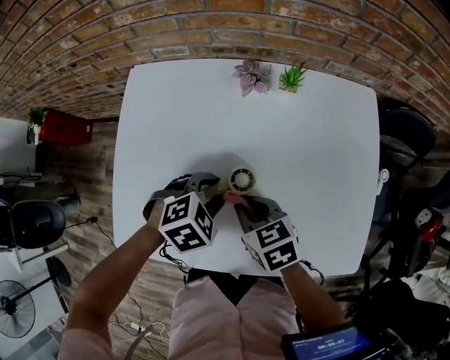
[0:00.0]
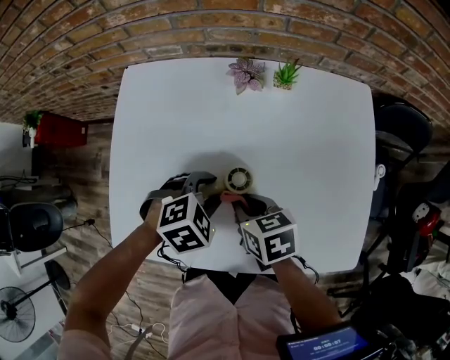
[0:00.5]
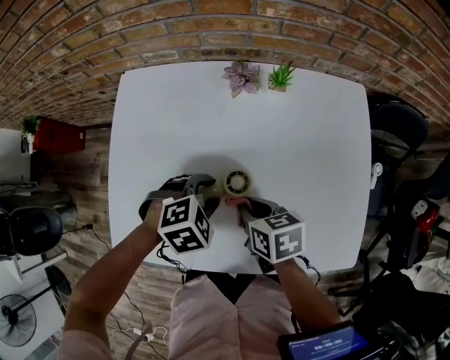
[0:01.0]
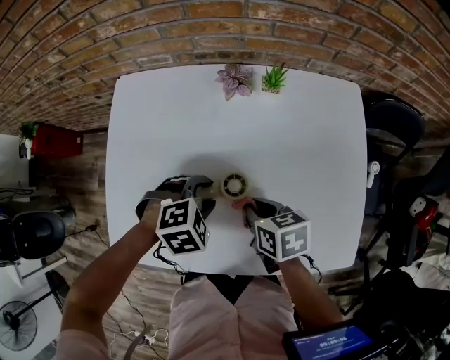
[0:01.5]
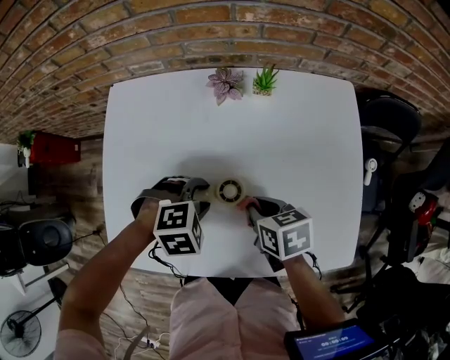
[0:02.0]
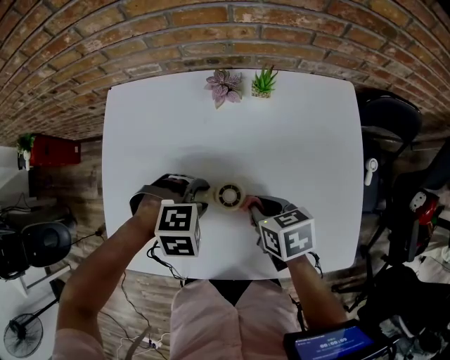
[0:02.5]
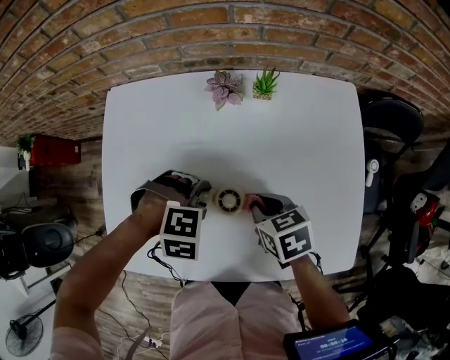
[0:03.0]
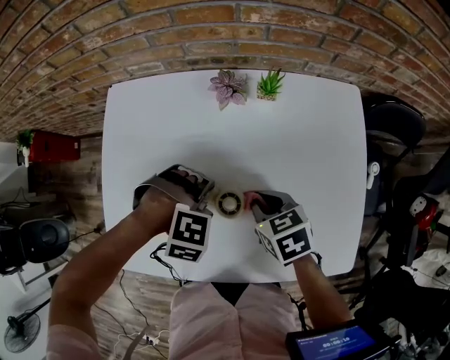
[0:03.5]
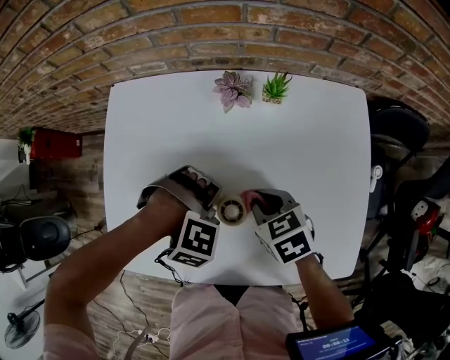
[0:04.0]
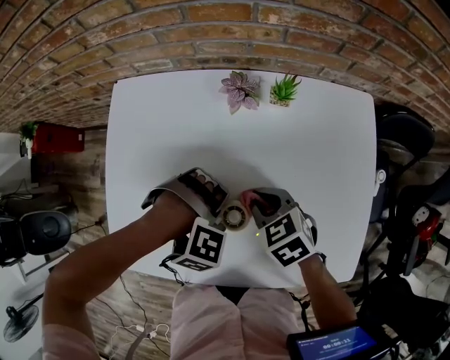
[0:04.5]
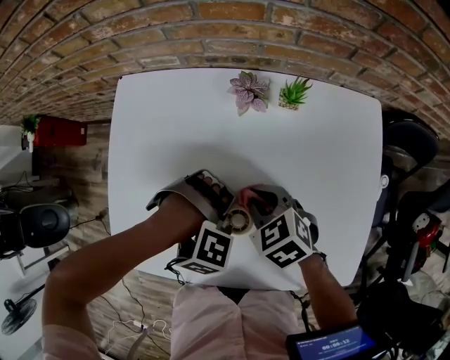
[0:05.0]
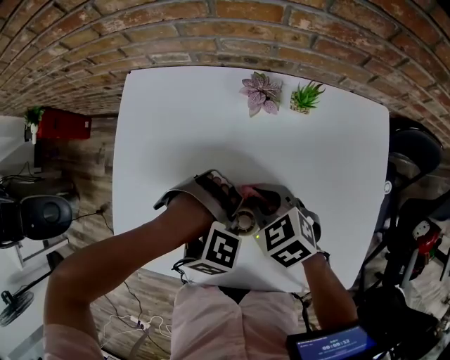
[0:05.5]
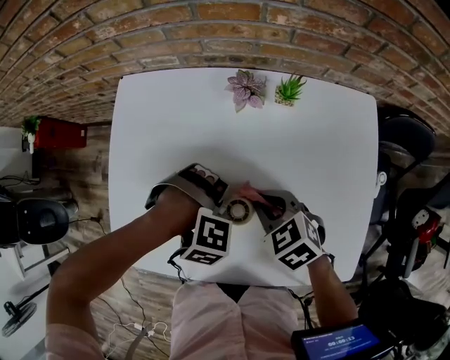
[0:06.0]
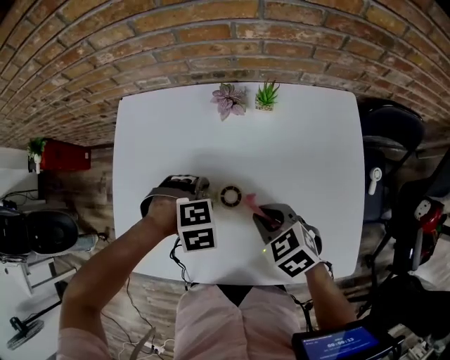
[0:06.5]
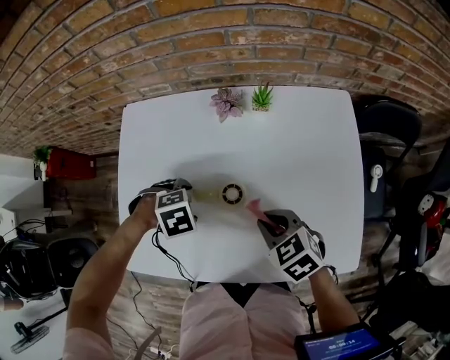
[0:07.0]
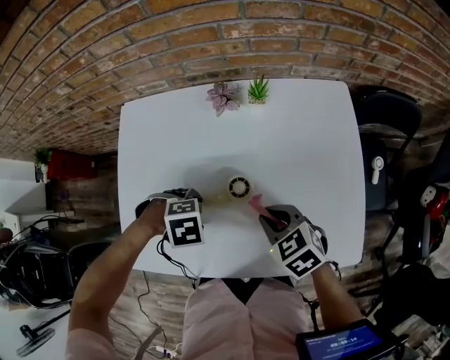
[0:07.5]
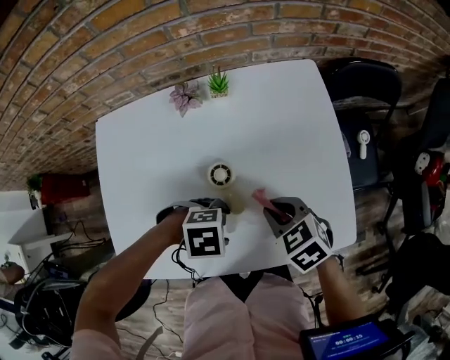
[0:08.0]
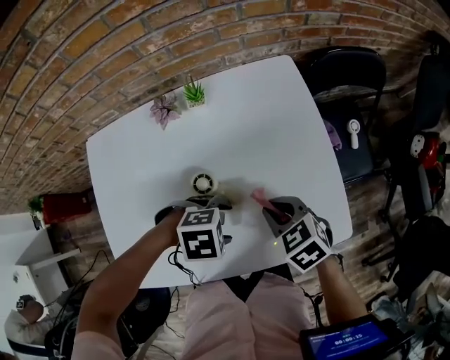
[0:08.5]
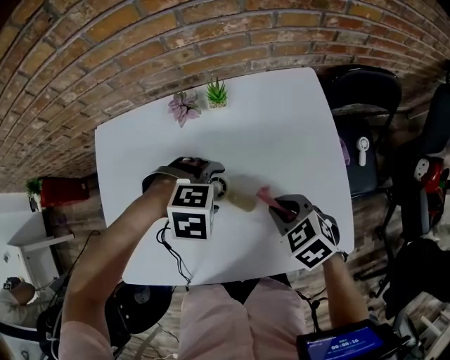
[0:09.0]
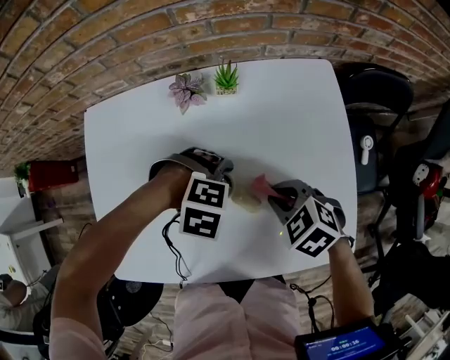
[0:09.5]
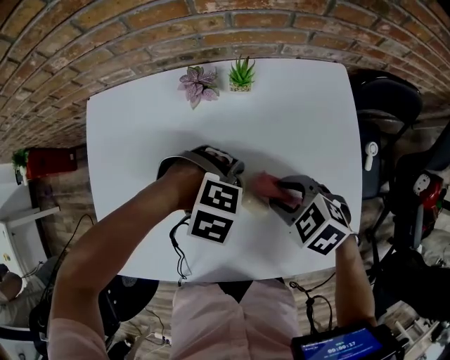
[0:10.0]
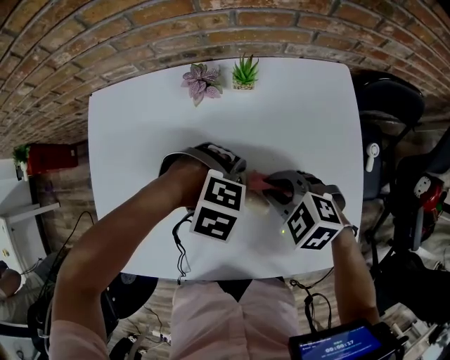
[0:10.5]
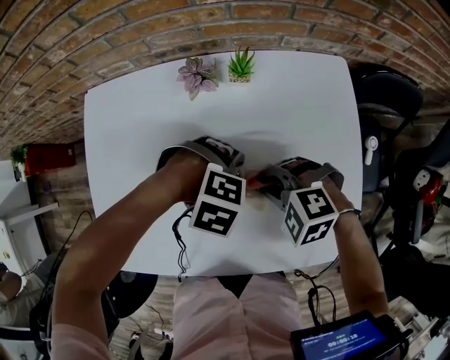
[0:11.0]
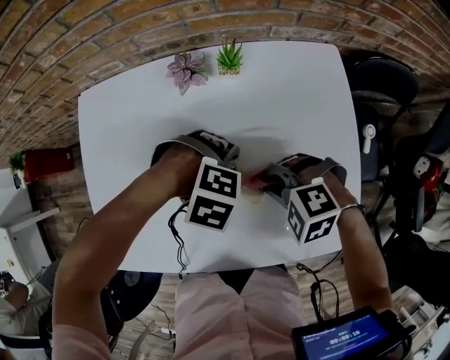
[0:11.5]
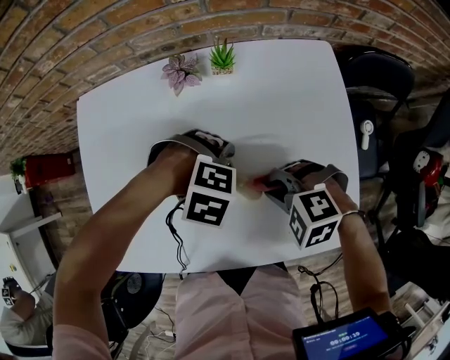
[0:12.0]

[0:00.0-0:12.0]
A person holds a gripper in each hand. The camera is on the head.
0:00.0 to 0:02.0: The right gripper shifts approximately 5 cm to the right; the left gripper turns by some 20 degrees.
0:02.0 to 0:04.0: The right gripper rotates approximately 20 degrees. Meanwhile the left gripper rotates roughly 40 degrees.
0:06.0 to 0:08.0: The left gripper moves some 15 cm, and turns by approximately 40 degrees, while the right gripper moves approximately 15 cm.
0:08.0 to 0:10.0: The right gripper changes place by some 5 cm, swivels about 20 degrees, and opens up; the left gripper shifts by approximately 10 cm, and turns by approximately 30 degrees.
0:10.0 to 0:12.0: The right gripper changes its angle by approximately 30 degrees, and closes up.

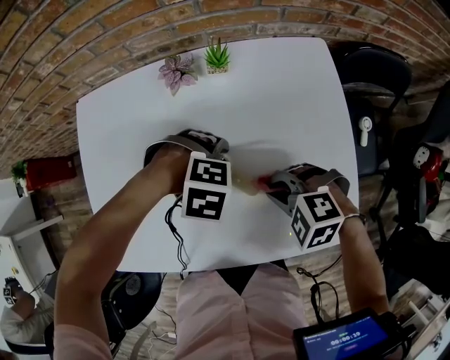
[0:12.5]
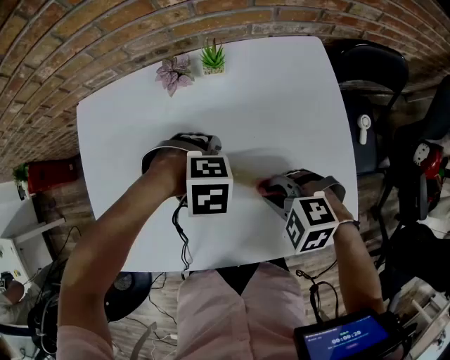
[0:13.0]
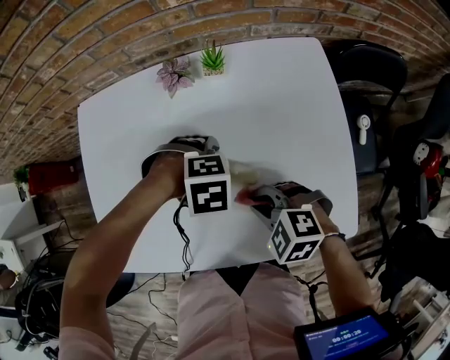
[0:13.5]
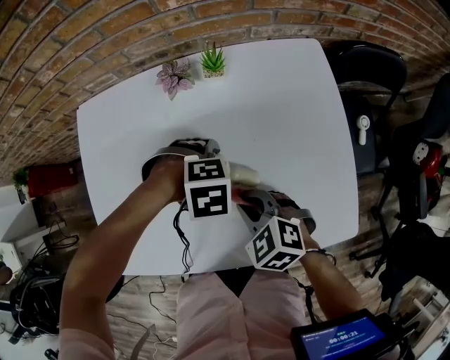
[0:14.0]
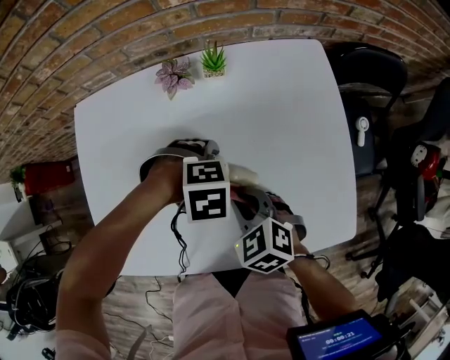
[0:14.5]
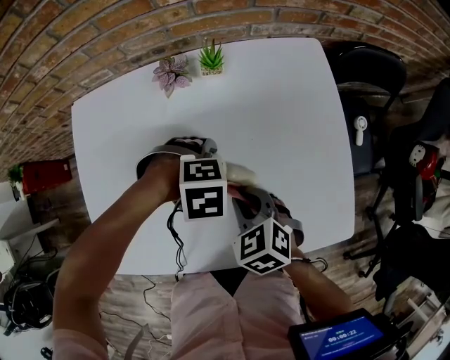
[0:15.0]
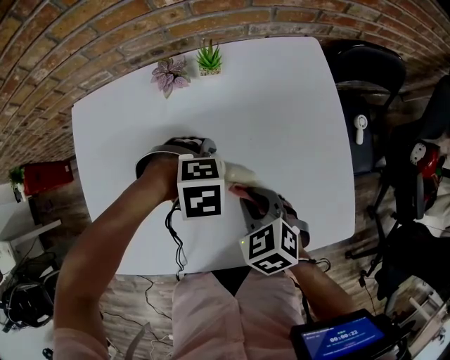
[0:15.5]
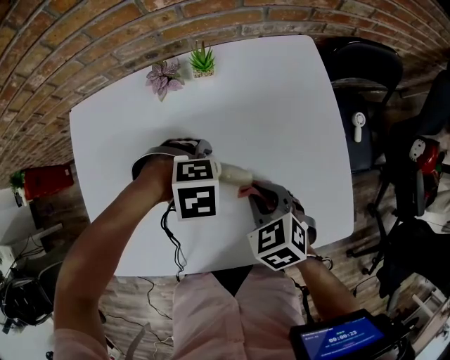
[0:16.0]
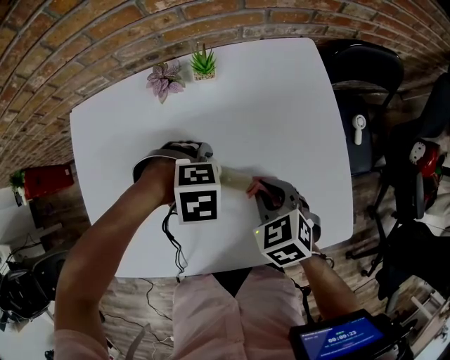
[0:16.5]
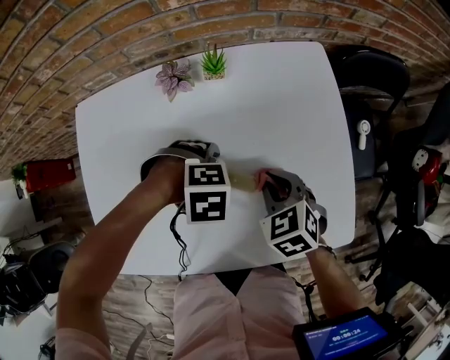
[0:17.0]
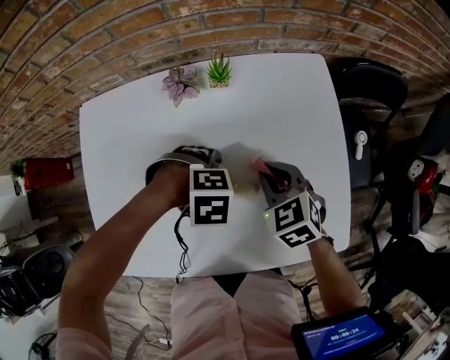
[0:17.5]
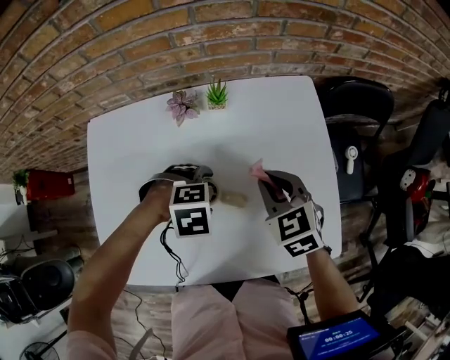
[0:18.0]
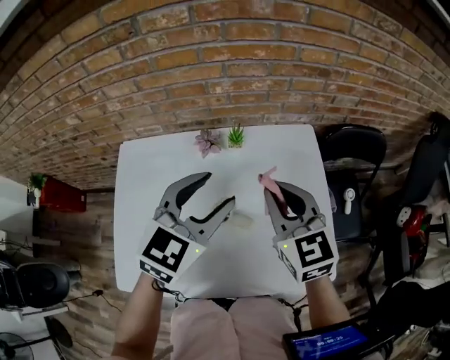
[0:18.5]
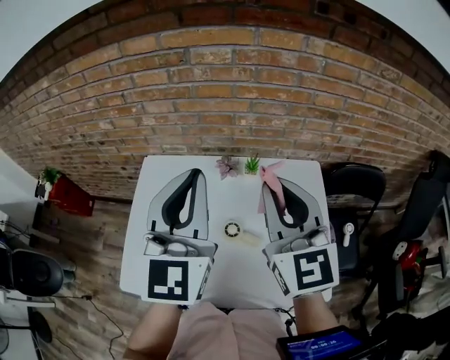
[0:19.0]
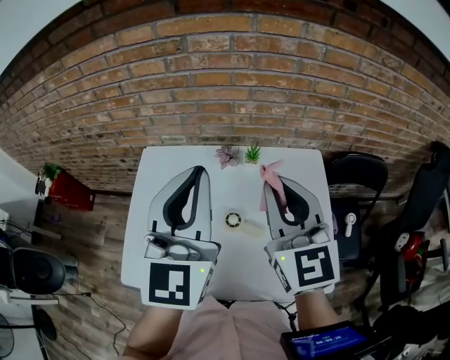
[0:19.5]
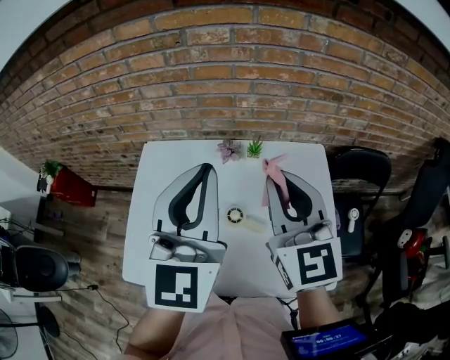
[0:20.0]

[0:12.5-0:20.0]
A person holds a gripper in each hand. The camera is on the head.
0:12.5 to 0:14.5: The right gripper ends up roughly 5 cm from where it was, and turns by about 40 degrees.
0:14.5 to 0:16.5: The right gripper moves about 10 cm.
0:16.5 to 0:18.0: The right gripper heads upward, covering some 5 cm.
0:18.0 to 0:20.0: Both grippers travel together upward, approximately 35 cm. The left gripper tips its fingers upward by about 90 degrees, and closes its fingers. The right gripper tilts its fingers roughly 40 degrees upward.

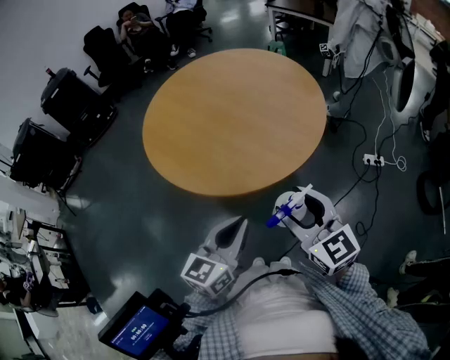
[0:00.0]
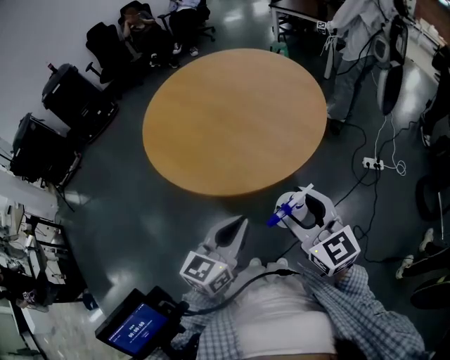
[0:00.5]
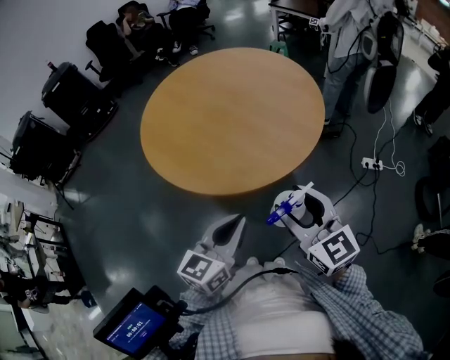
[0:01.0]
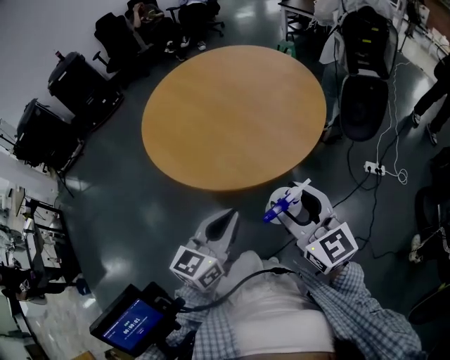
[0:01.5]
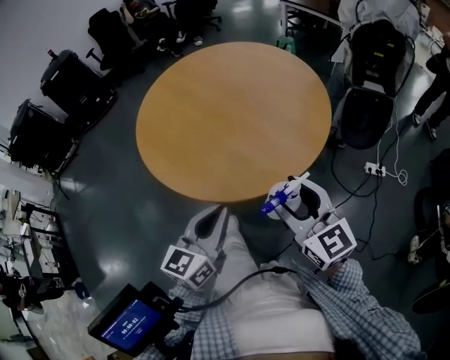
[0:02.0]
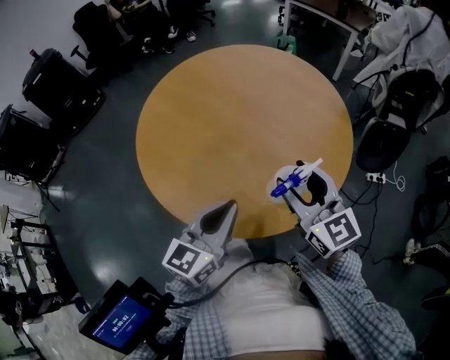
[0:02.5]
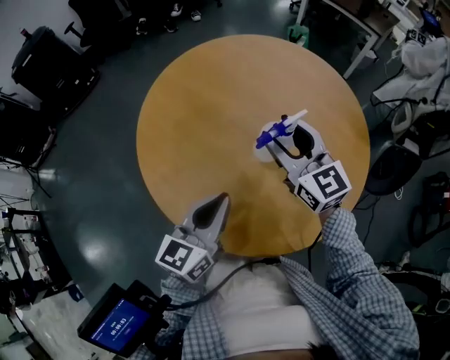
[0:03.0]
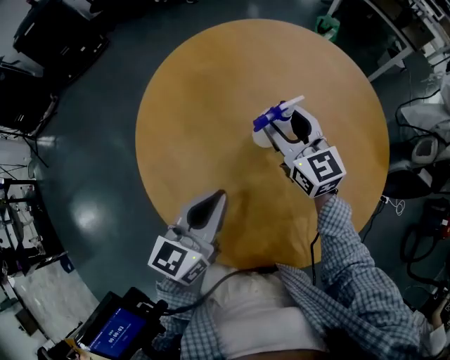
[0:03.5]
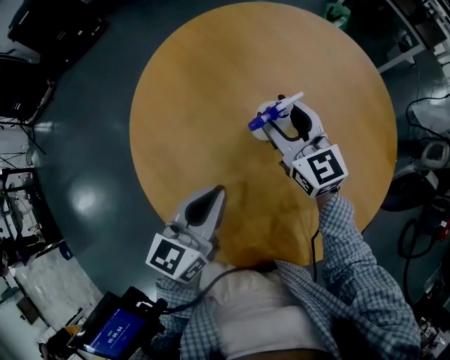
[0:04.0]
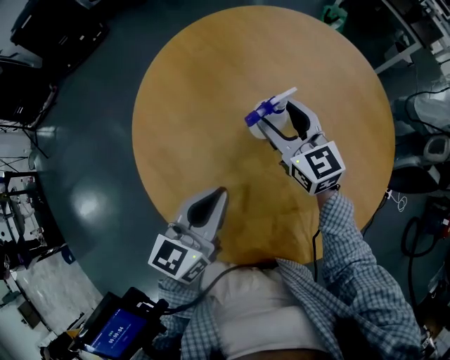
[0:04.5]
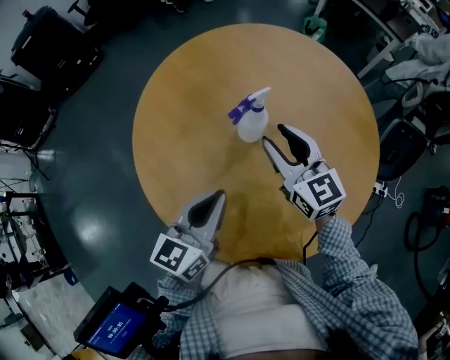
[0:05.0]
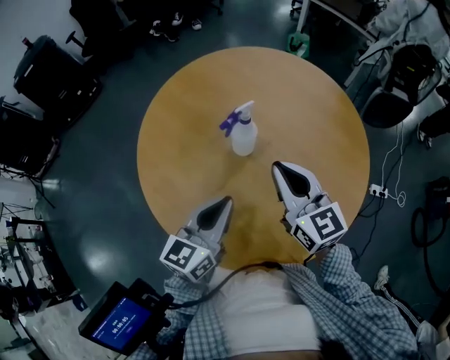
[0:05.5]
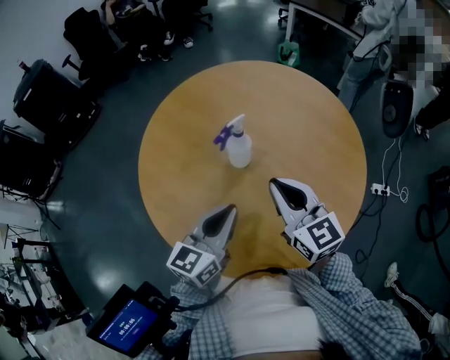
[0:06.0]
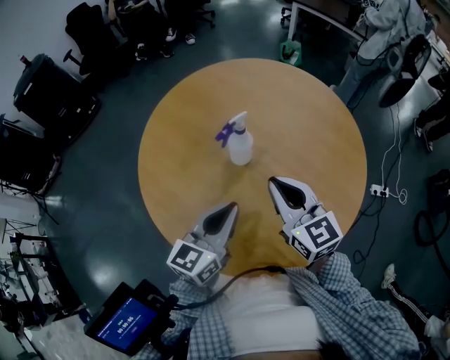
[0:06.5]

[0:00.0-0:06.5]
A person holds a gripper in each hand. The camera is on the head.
0:00.0 to 0:02.0: The left gripper moves some 5 cm.
0:02.0 to 0:04.5: The pair of grippers is taken forward, approximately 50 cm.
0:04.5 to 0:06.5: The right gripper moves backward, to the right and upward, some 15 cm, and closes up.

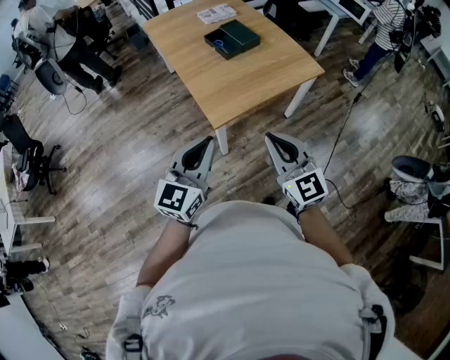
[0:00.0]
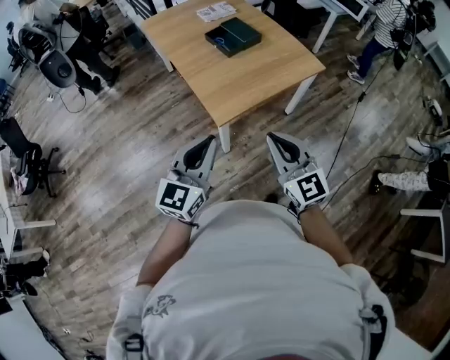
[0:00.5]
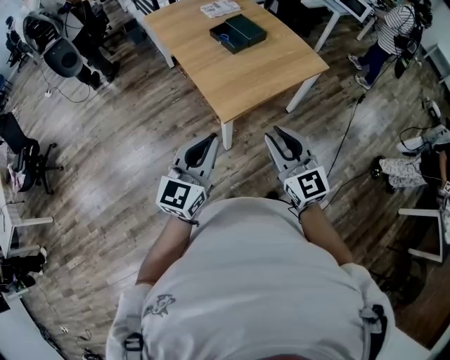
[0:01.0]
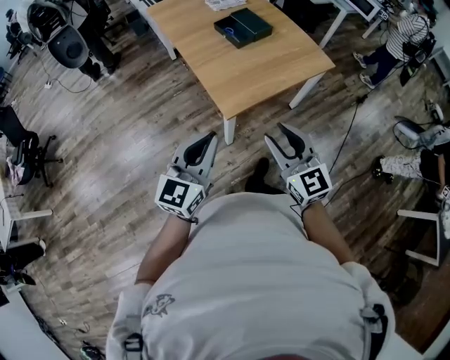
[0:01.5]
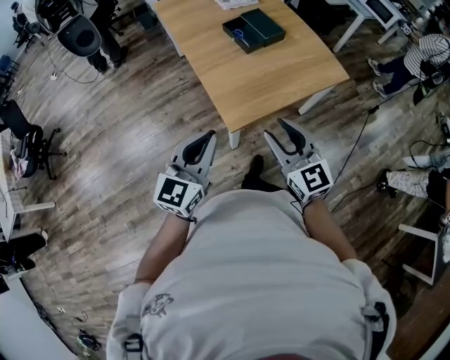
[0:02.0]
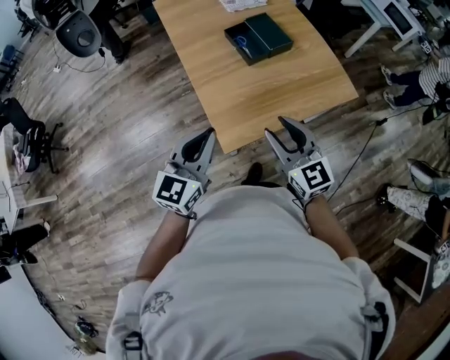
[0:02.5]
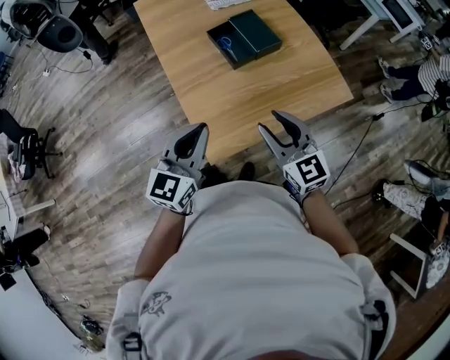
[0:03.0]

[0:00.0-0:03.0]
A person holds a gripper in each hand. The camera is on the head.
0:00.0 to 0:01.5: Both grippers travel together to the left, some 5 cm. The right gripper opens.
0:01.5 to 0:03.0: The grippers both shift forward by some 30 cm.
